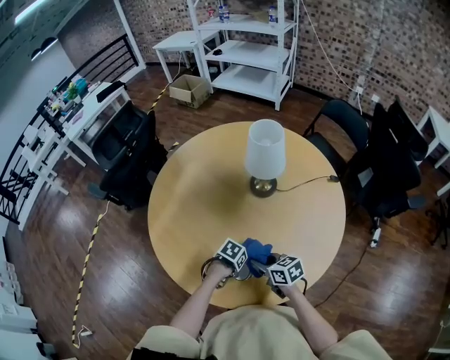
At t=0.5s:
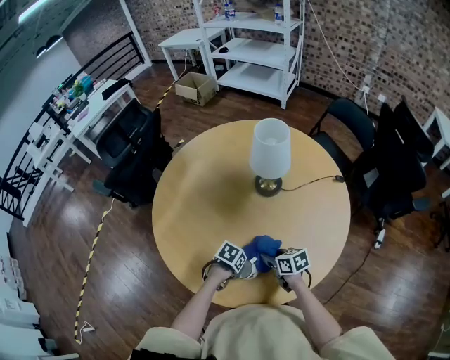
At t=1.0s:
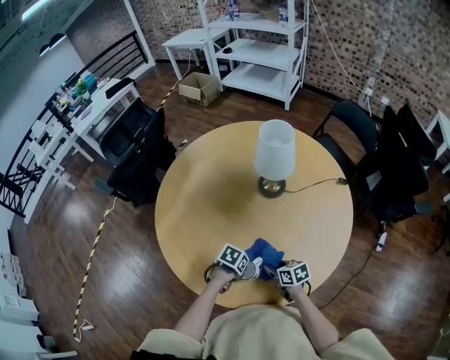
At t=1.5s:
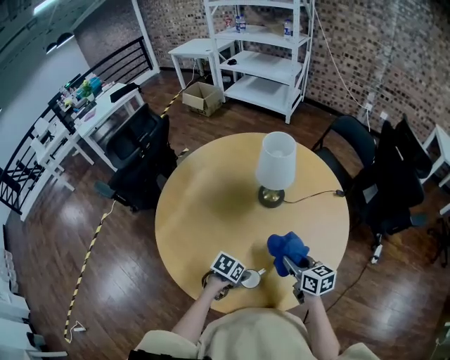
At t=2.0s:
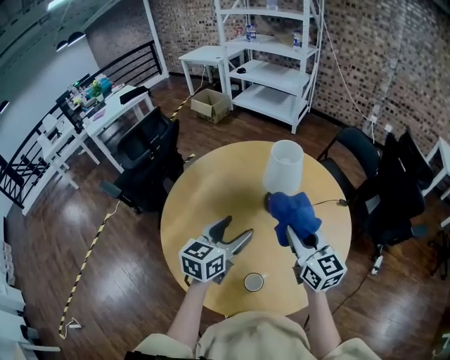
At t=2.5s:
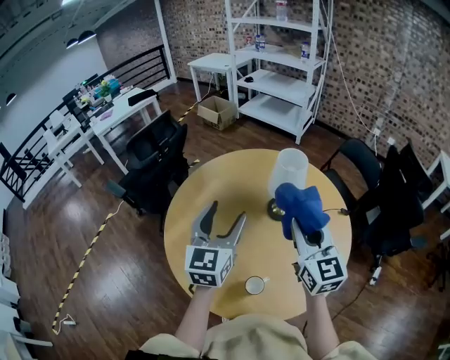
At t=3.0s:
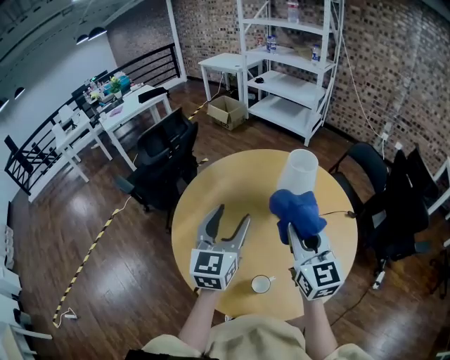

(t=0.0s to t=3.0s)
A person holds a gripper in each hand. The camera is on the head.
t=0.0s - t=1.5s: The right gripper changes place by some 10 cm. Meanwhile the left gripper opens its fingers.
t=1.5s - t=3.0s: Both grippers move upward, about 35 cm. The right gripper swivels about 40 degrees. The left gripper angles its fingers upward, by some 50 degrees.

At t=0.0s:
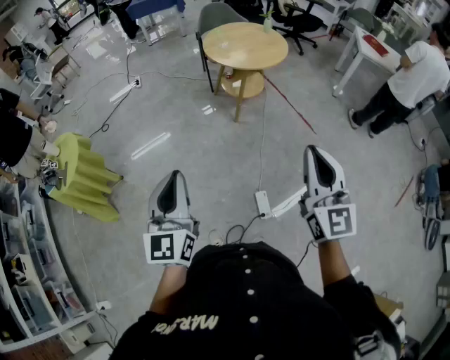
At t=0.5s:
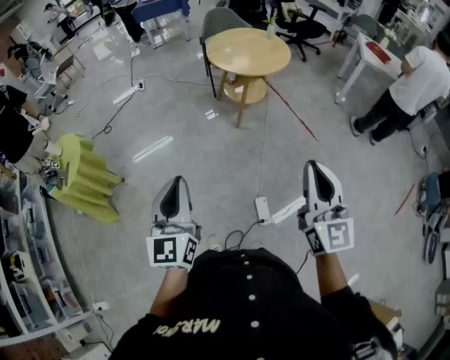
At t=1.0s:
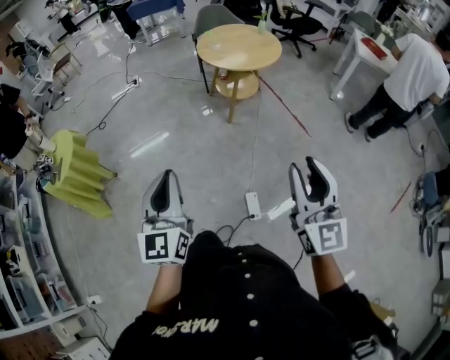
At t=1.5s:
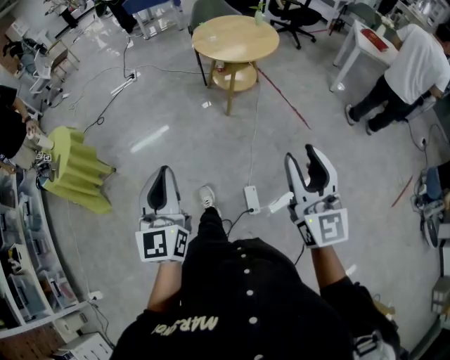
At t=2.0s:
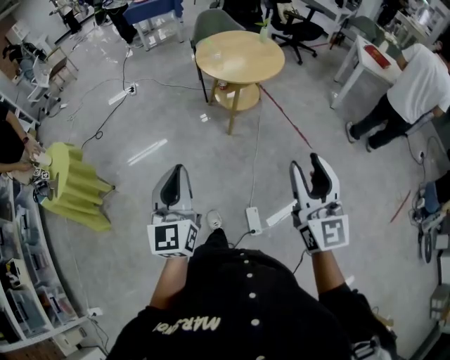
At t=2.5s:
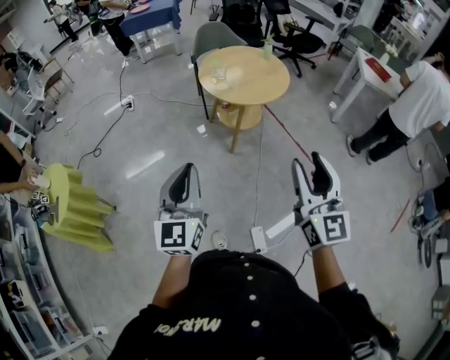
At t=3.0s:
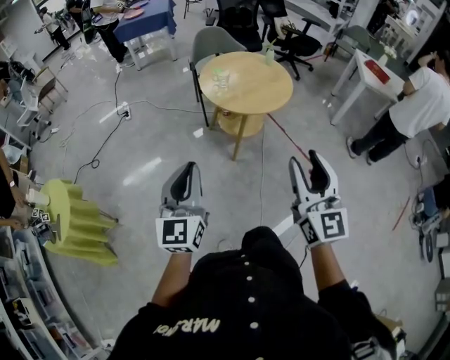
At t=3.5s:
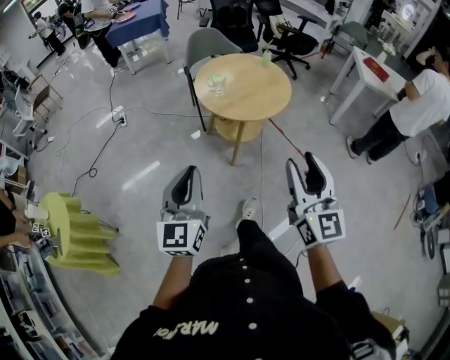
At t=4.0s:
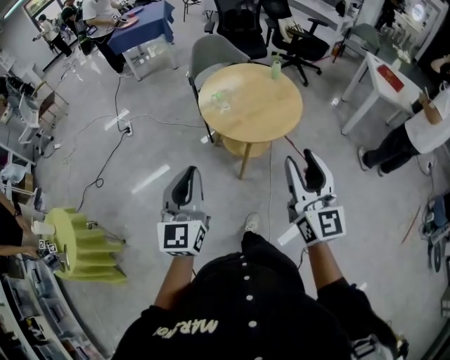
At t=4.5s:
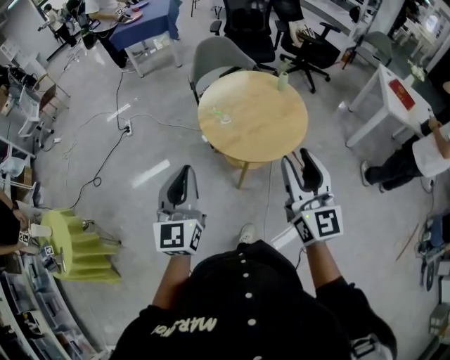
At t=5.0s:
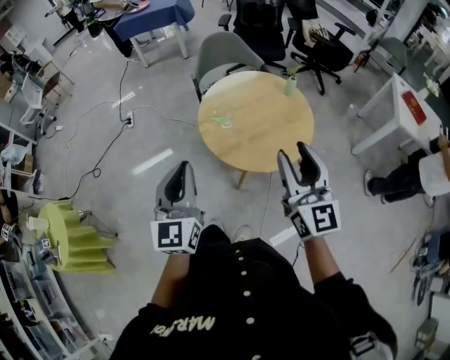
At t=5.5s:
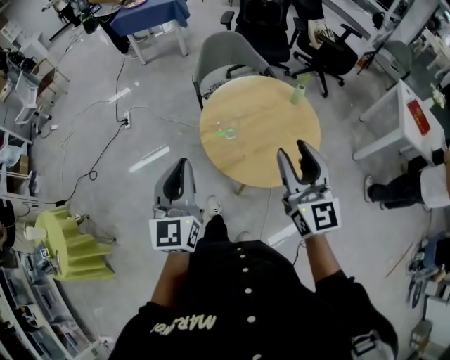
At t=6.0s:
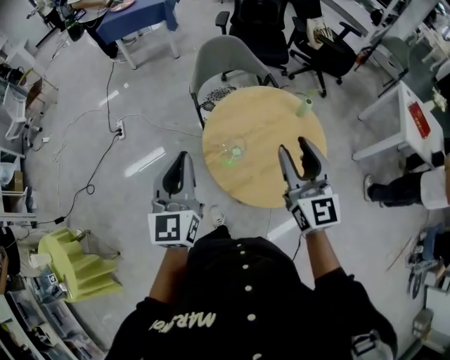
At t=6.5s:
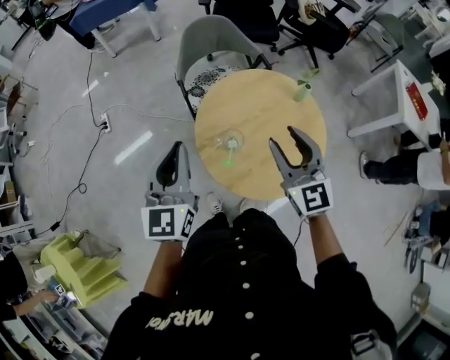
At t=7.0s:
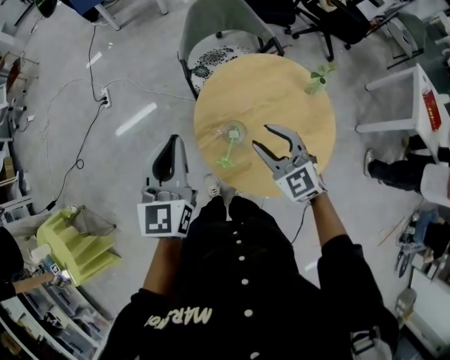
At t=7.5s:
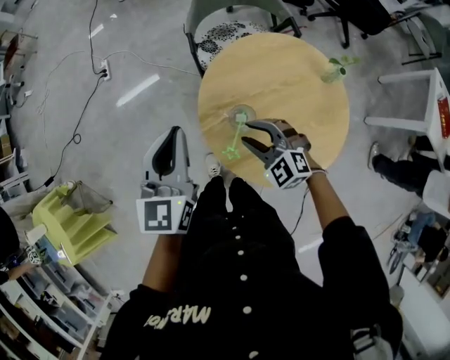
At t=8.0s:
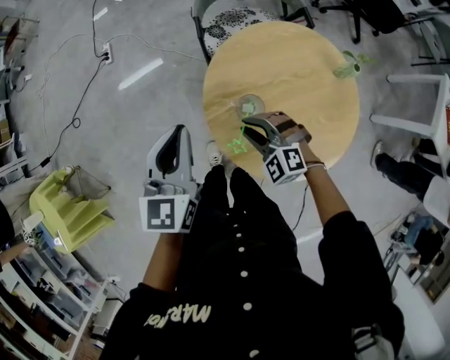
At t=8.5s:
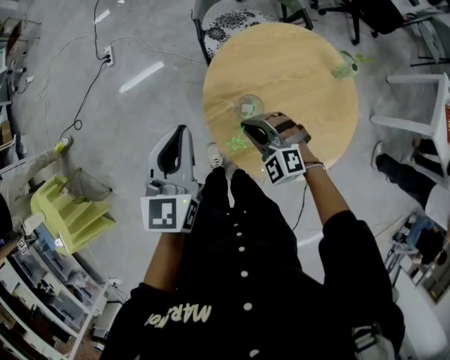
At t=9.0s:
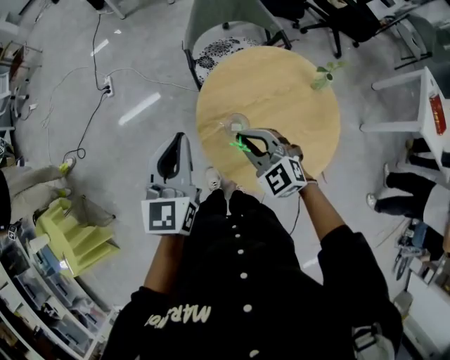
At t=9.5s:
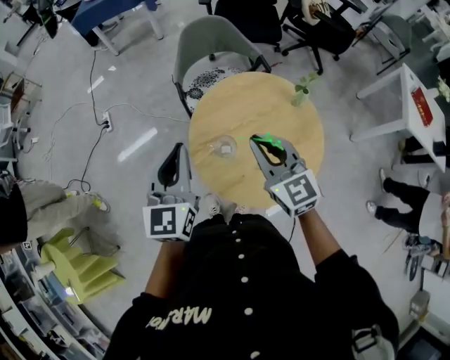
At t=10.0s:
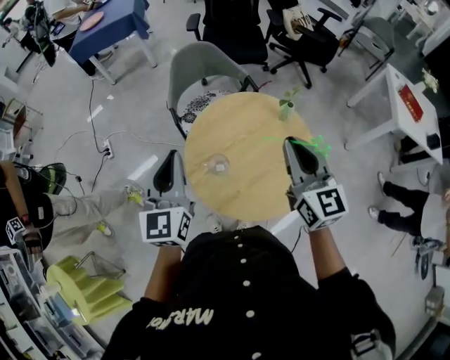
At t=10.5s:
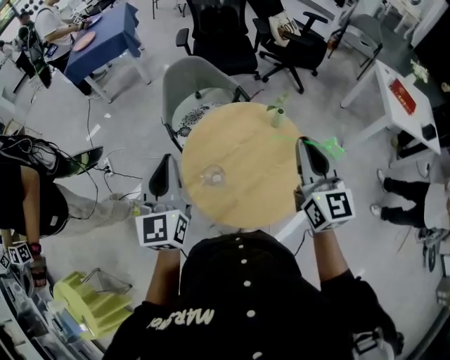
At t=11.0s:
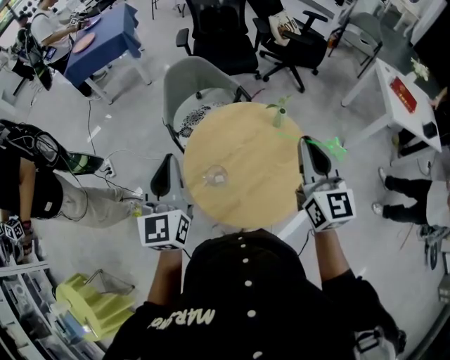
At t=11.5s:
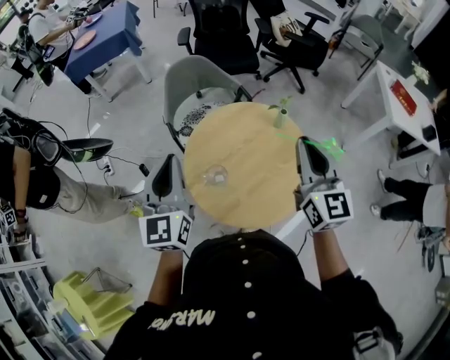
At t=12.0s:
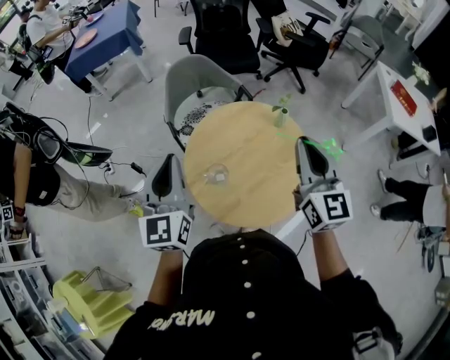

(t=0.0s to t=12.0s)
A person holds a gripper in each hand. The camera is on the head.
t=0.0s - t=2.0s: The grippers both shift forward and to the right by approximately 15 cm. The right gripper opens.
t=2.0s - t=4.0s: The pair of grippers is taken forward, roughly 50 cm.
t=4.0s - t=6.0s: The two grippers travel together, forward, some 50 cm.
t=6.0s - t=8.0s: The left gripper shifts roughly 20 cm downward and forward. Meanwhile the right gripper heads downward, covering roughly 35 cm, and tilts its fingers approximately 40 degrees downward.
t=8.0s - t=10.0s: The left gripper goes approximately 15 cm upward. Meanwhile the right gripper shifts some 35 cm upward, and tips its fingers upward by some 40 degrees.
t=10.0s - t=12.0s: The right gripper changes place by about 5 cm.

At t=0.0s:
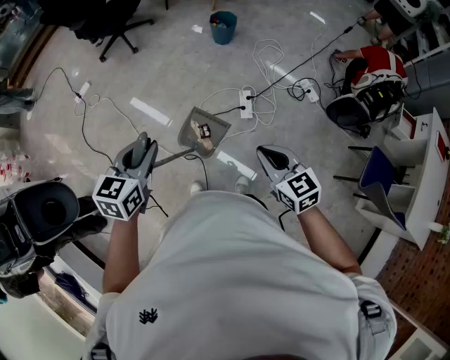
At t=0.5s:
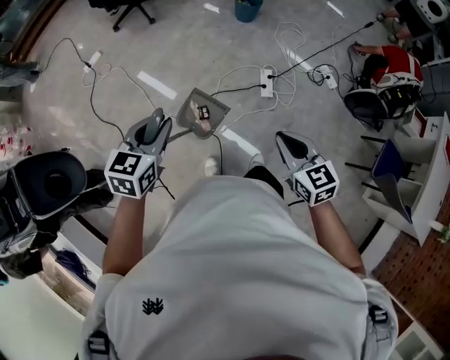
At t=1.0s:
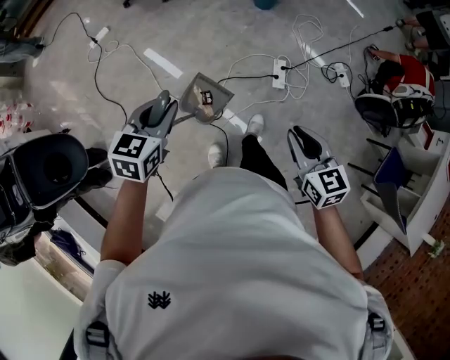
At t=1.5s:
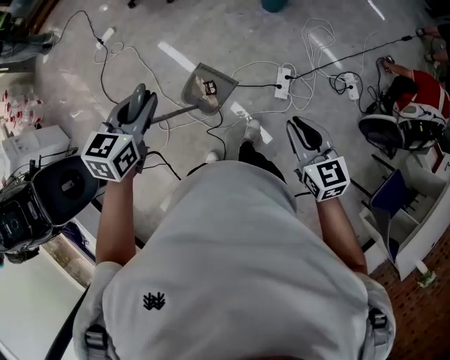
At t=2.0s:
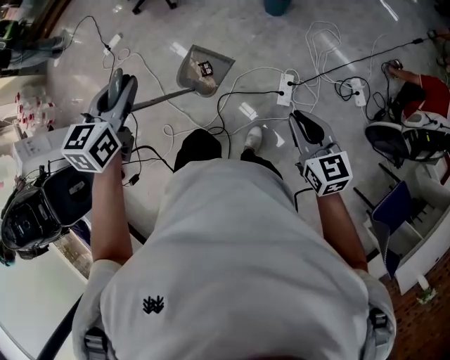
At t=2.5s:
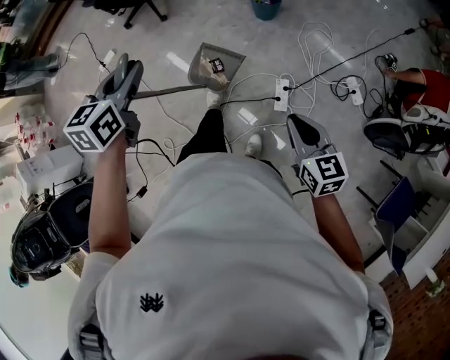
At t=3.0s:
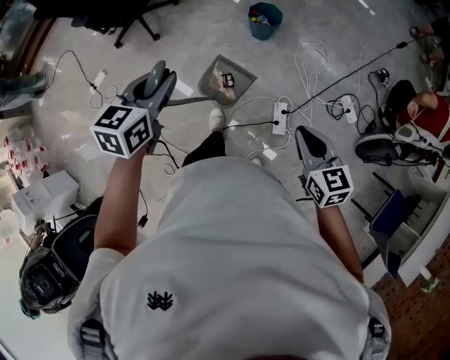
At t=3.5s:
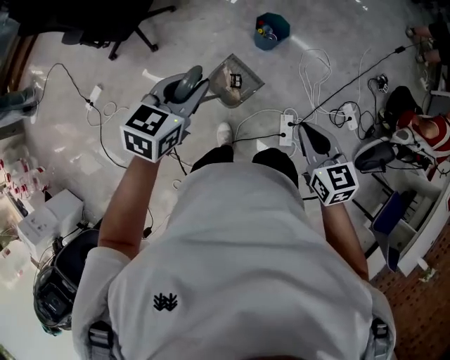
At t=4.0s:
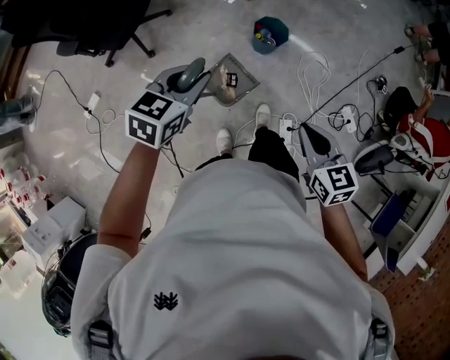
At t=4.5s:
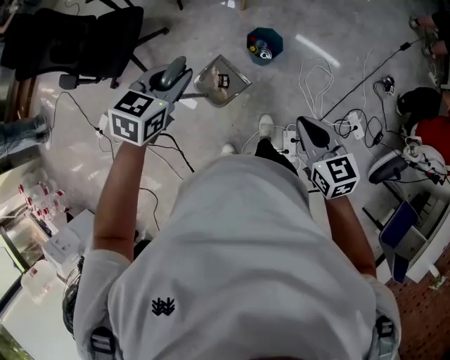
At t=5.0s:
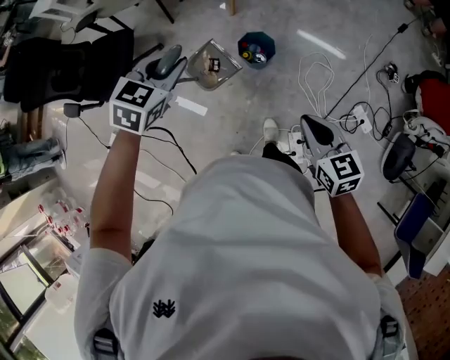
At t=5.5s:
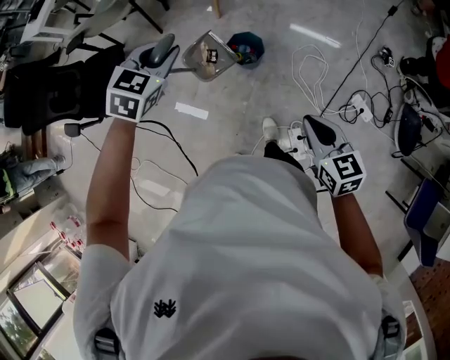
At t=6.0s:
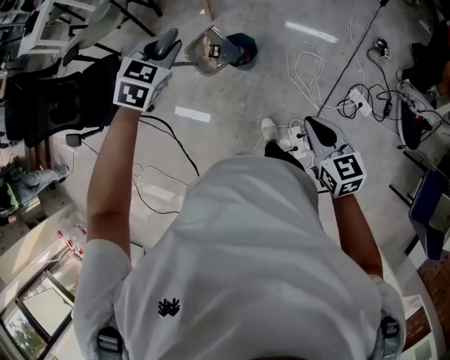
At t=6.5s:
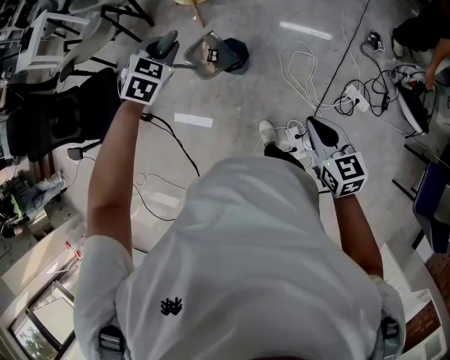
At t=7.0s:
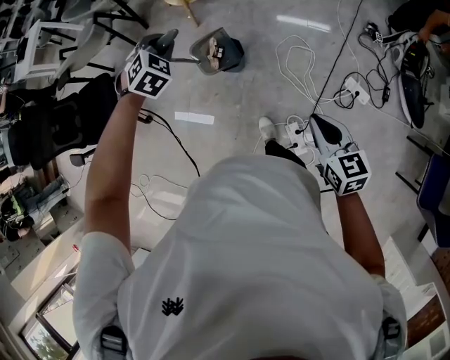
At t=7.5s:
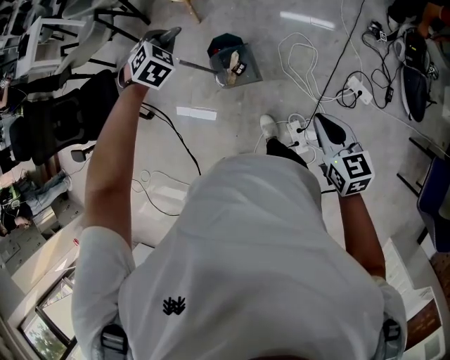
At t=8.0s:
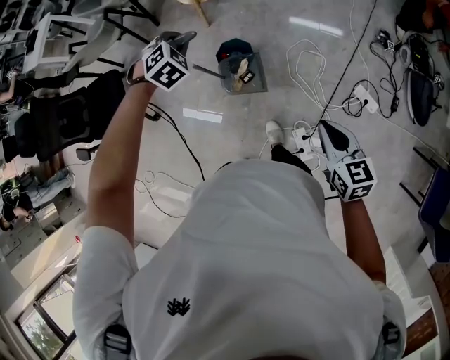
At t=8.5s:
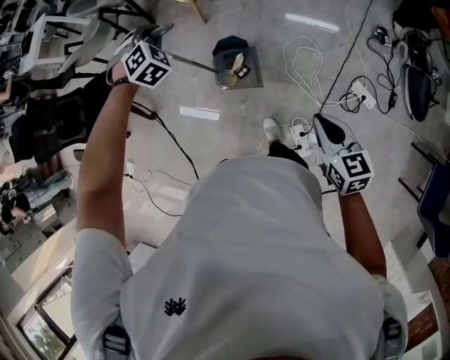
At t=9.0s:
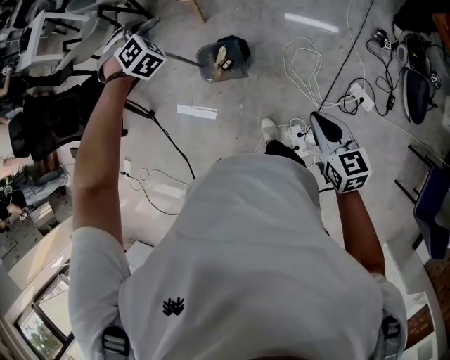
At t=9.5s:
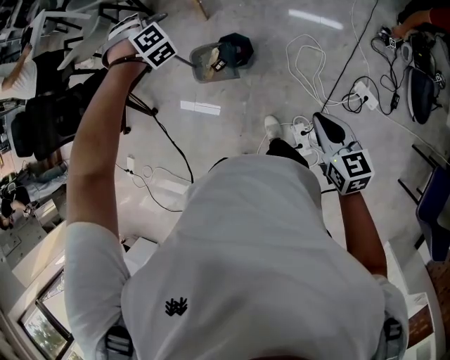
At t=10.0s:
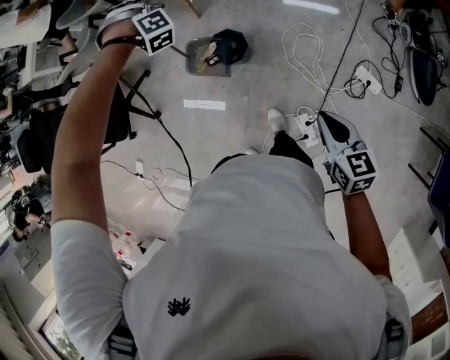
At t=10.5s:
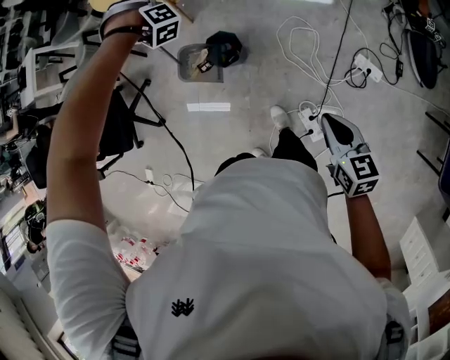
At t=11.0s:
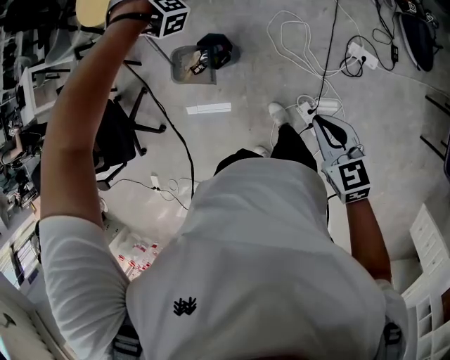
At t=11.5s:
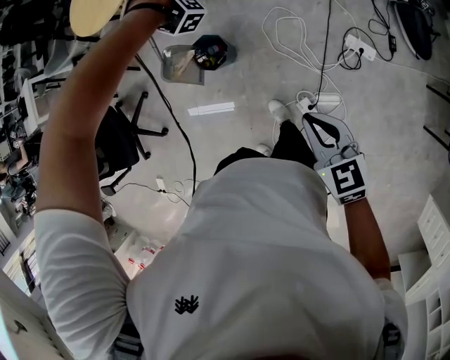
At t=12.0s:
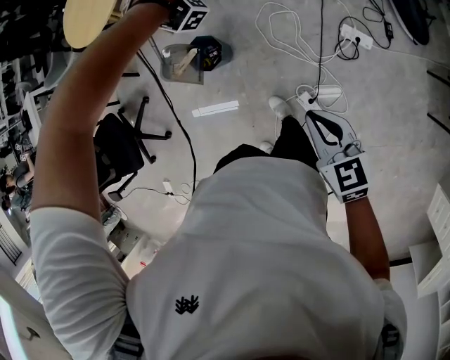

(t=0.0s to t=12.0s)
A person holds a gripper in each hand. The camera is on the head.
t=0.0s - t=2.0s: The right gripper changes place by some 25 cm.
t=2.0s - t=4.0s: The right gripper shifts by roughly 40 cm.
t=4.0s - t=6.0s: The right gripper shifts by about 25 cm.
t=6.0s - t=8.0s: The right gripper ends up some 10 cm from where it was.
t=10.0s - t=12.0s: The right gripper shifts by roughly 5 cm.
